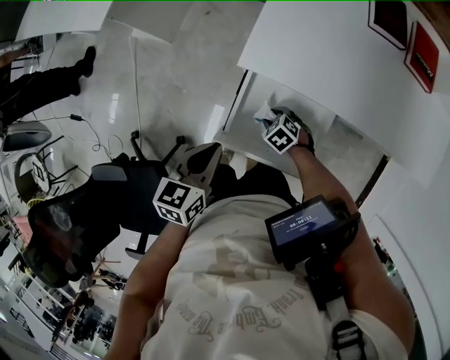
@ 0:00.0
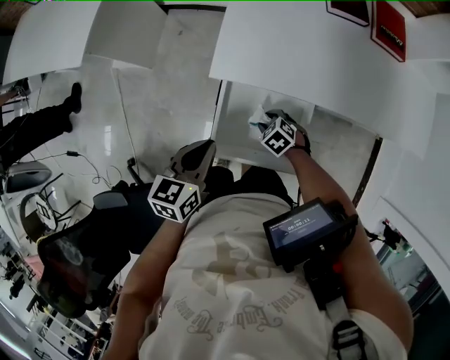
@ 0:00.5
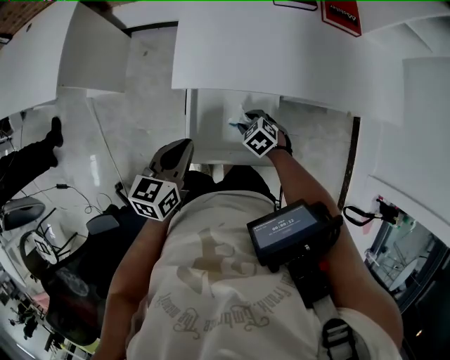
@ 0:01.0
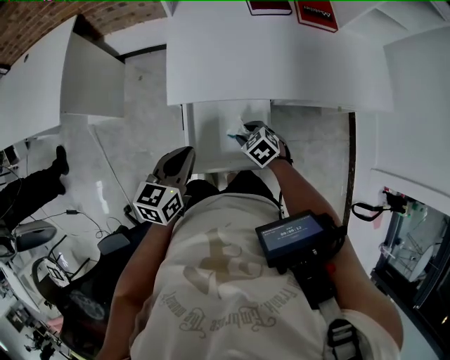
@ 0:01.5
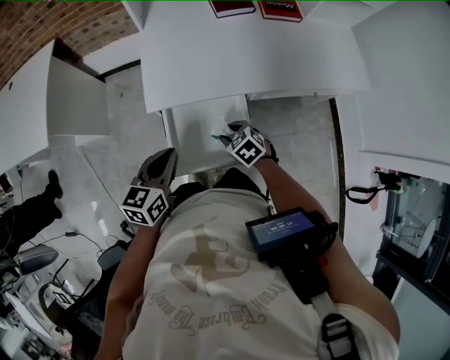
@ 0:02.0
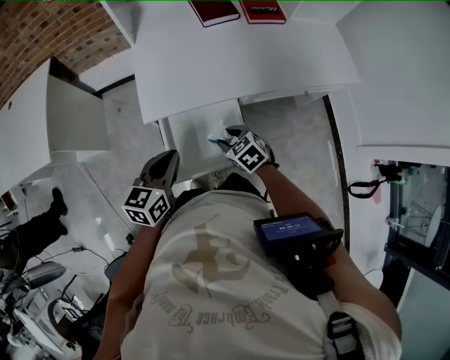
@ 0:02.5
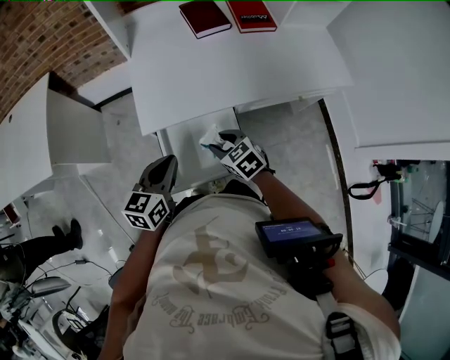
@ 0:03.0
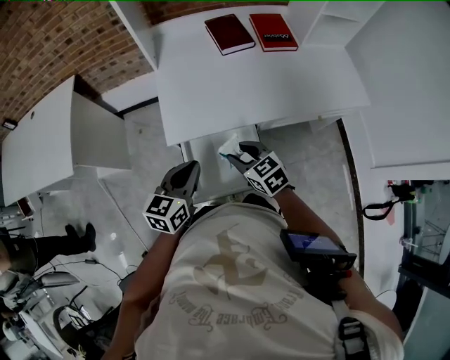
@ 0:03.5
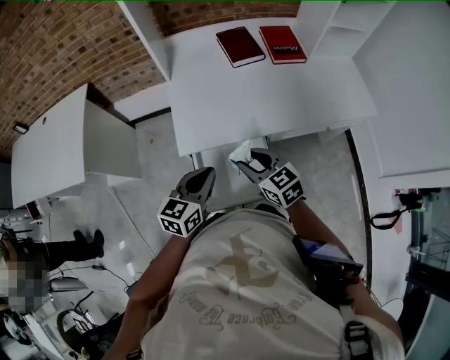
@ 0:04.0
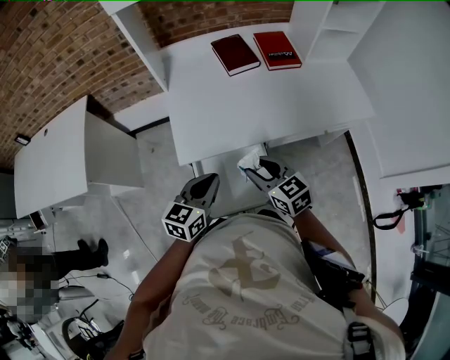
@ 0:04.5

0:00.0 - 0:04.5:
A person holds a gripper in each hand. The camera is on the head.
0:00.0 - 0:02.0: The left gripper moves approximately 10 cm, and changes its angle by some 20 degrees. Meanwhile the right gripper shifts some 10 cm upward, and swivels approximately 30 degrees.
0:02.0 - 0:04.5: The left gripper heads to the right and upward, covering approximately 10 cm. The right gripper travels upward by some 20 cm, and angles its fingers upward, by about 30 degrees.

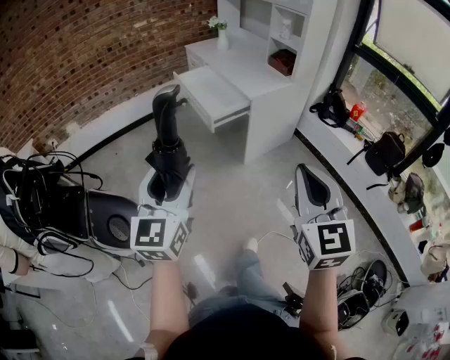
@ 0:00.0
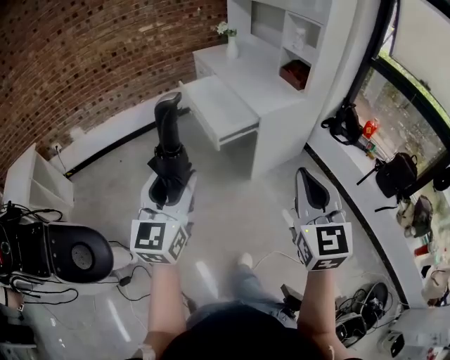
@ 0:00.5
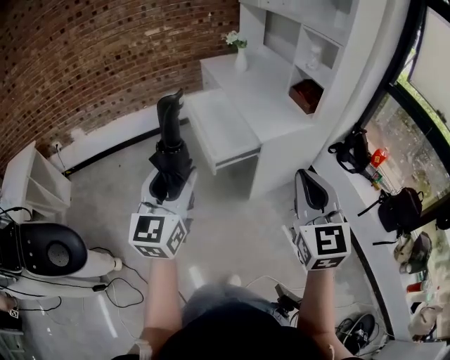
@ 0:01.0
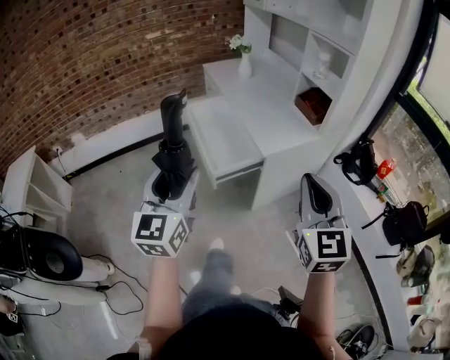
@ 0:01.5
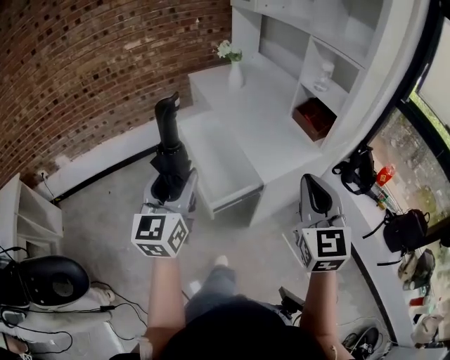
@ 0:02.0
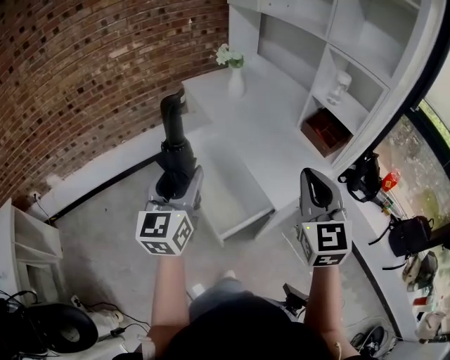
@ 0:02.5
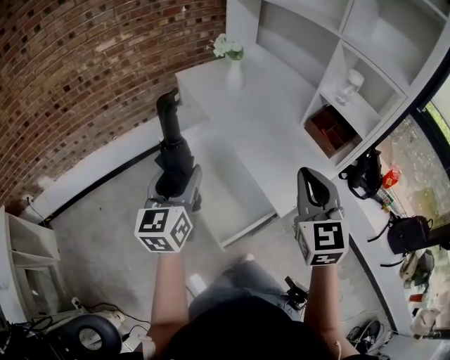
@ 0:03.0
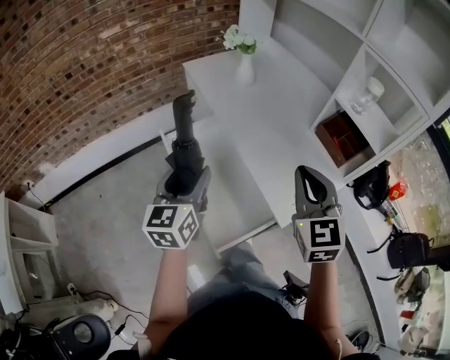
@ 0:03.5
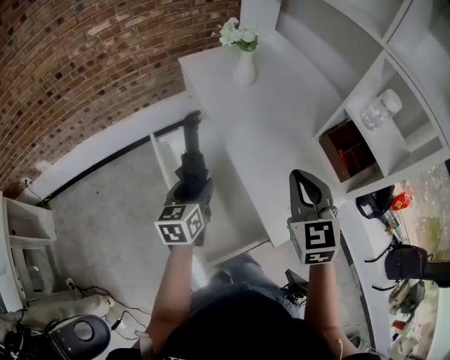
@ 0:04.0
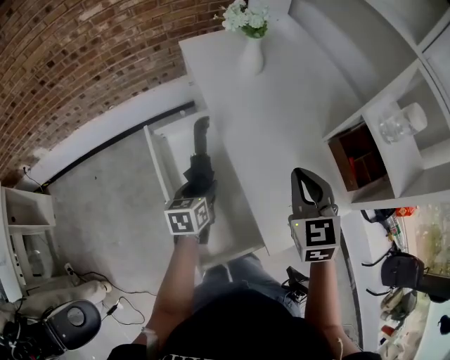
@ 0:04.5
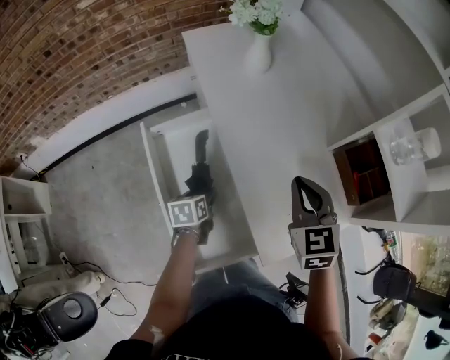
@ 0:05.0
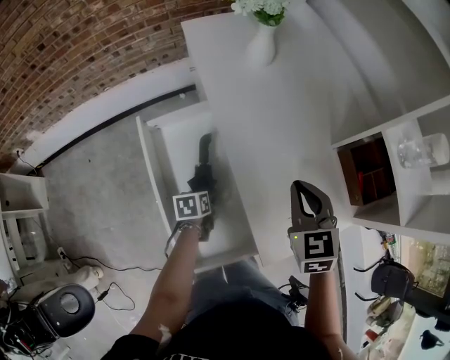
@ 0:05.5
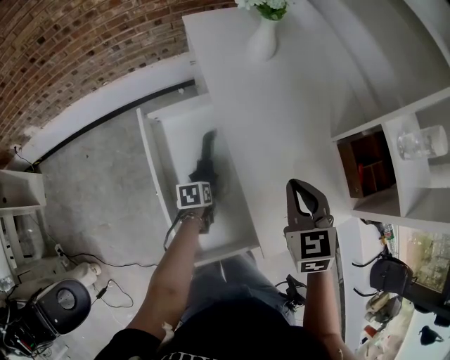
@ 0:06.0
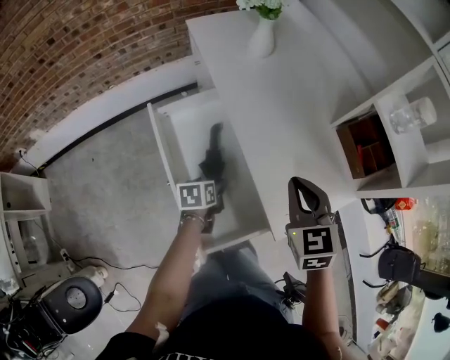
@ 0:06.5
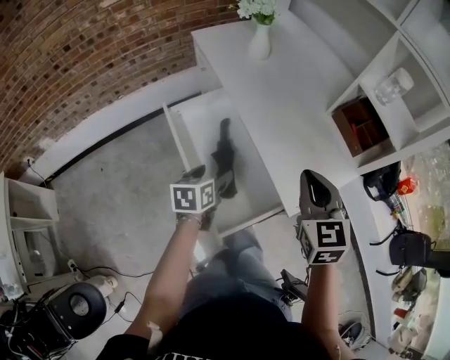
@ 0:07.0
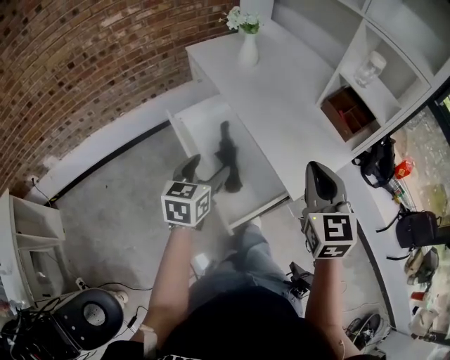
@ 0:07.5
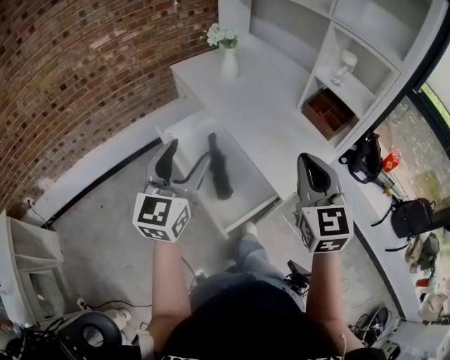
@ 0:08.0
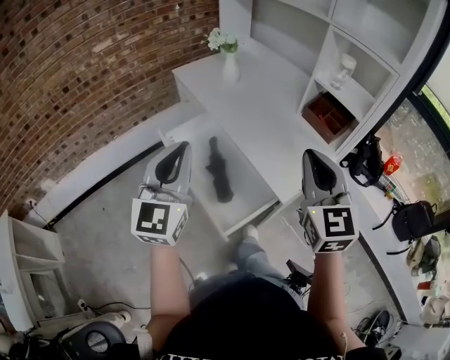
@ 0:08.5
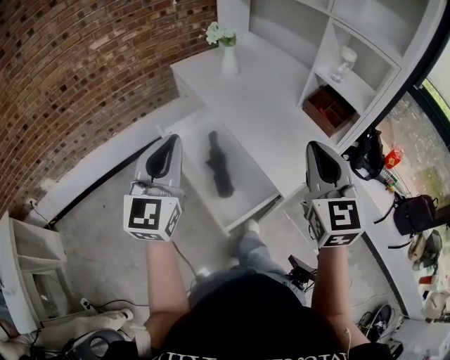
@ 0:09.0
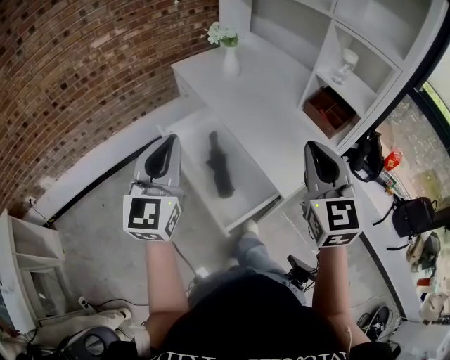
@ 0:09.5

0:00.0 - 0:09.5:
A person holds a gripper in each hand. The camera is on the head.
0:00.0 - 0:02.0: Both grippers are carried forward, some 50 cm.
0:02.0 - 0:04.0: The left gripper shifts about 40 cm forward and downward, and rotates roughly 30 degrees. The right gripper moves forward, about 35 cm.
0:04.0 - 0:05.5: The left gripper shifts approximately 25 cm downward, and angles its fingers downward, by approximately 30 degrees; the right gripper goes about 15 cm downward and forward.
0:05.5 - 0:07.5: The left gripper moves upward and backward, roughly 30 cm, and tilts its fingers approximately 30 degrees upward. Meanwhile the right gripper is displaced backward and upward by roughly 25 cm, and rotates approximately 20 degrees.
0:07.5 - 0:09.5: The right gripper goes about 10 cm upward; the left gripper is displaced upward by about 20 cm, swivels roughly 40 degrees, and closes.

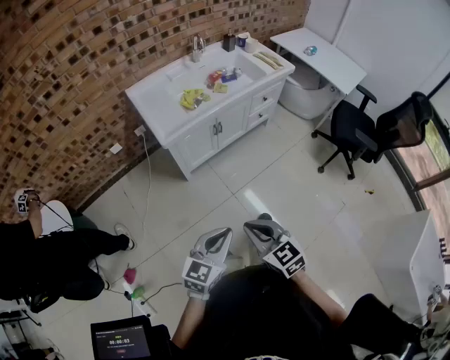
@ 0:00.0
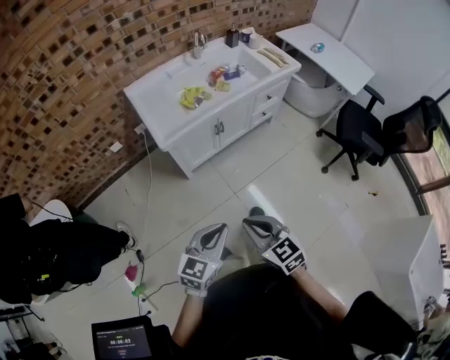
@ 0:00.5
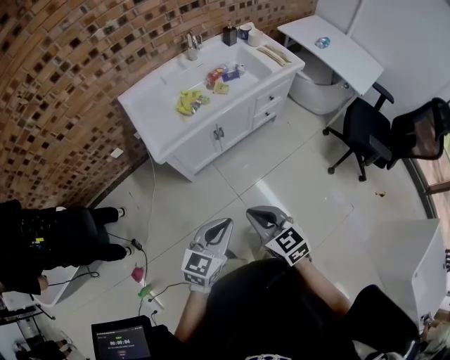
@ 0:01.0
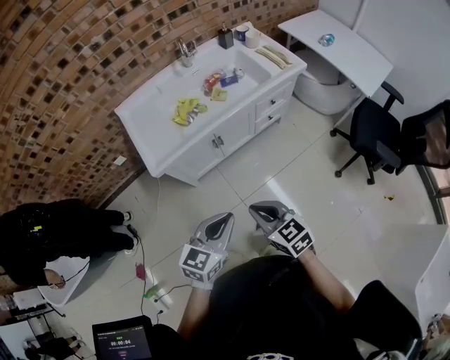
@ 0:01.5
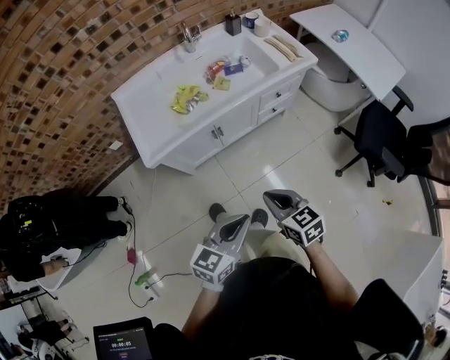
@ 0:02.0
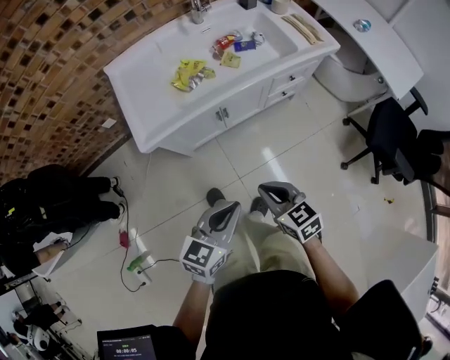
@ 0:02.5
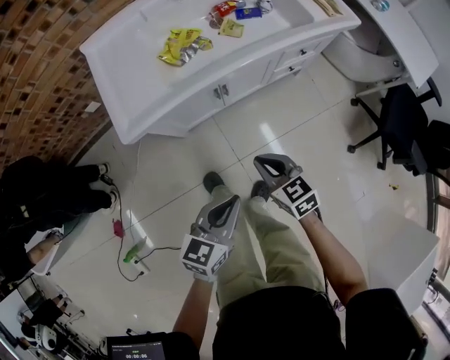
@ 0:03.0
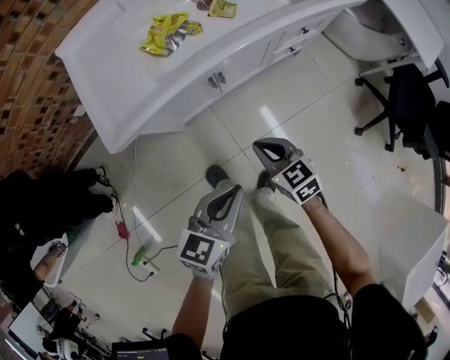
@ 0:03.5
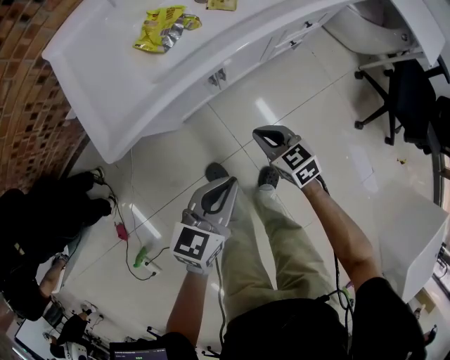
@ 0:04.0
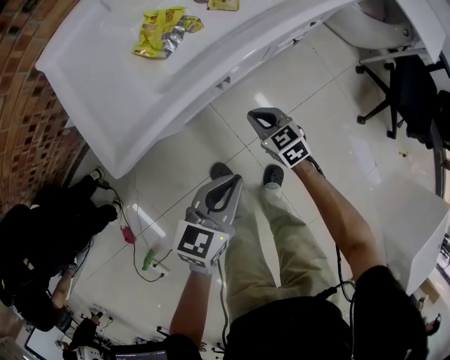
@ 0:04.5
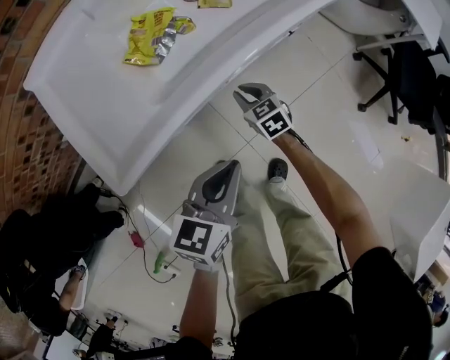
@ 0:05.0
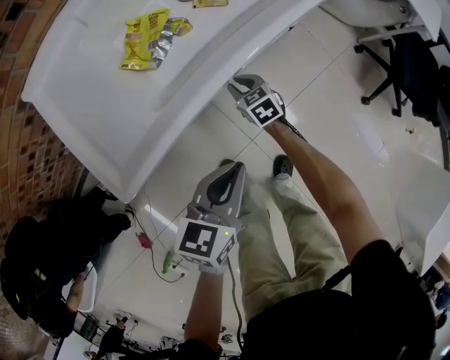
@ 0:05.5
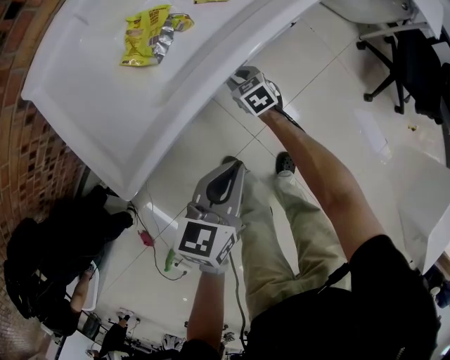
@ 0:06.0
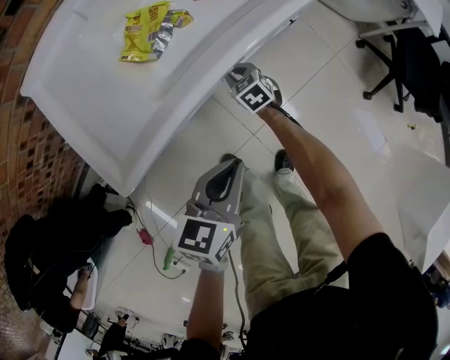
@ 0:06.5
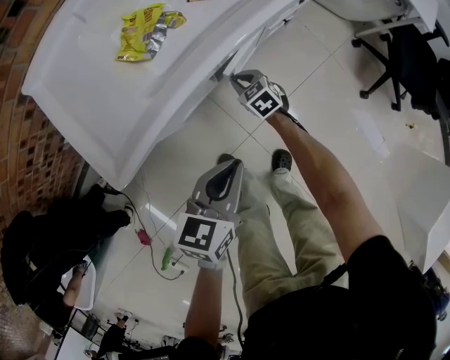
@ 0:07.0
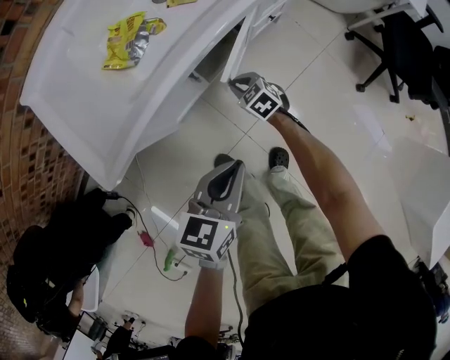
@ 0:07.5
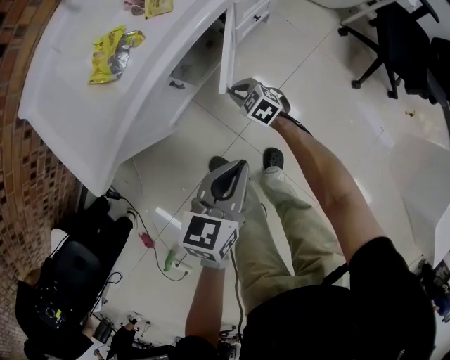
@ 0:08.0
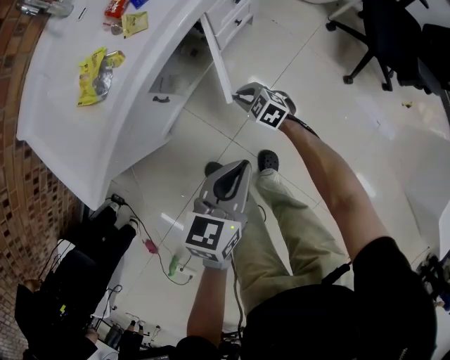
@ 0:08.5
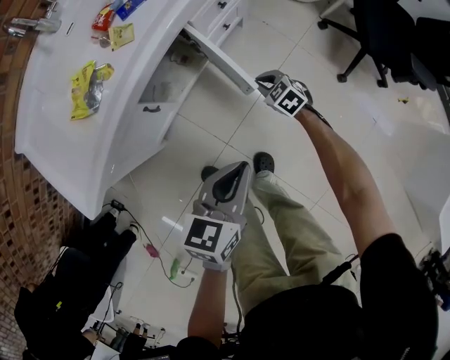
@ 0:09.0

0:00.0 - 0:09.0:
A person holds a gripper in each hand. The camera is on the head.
0:00.0 - 0:02.0: Both grippers move forward and to the right, approximately 30 cm.
0:02.0 - 0:04.5: The right gripper is displaced downward and forward by approximately 40 cm; the left gripper heads downward, forward and to the left, covering approximately 30 cm.
0:04.5 - 0:07.0: The right gripper shifts roughly 15 cm downward and forward.
0:07.0 - 0:09.0: Both grippers move to the right, approximately 25 cm.

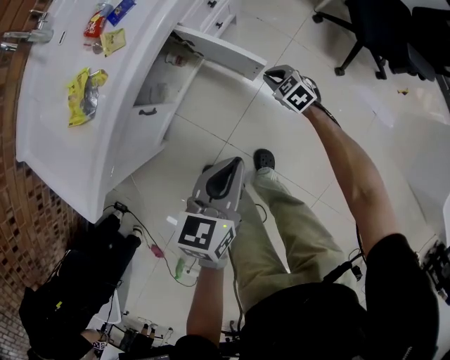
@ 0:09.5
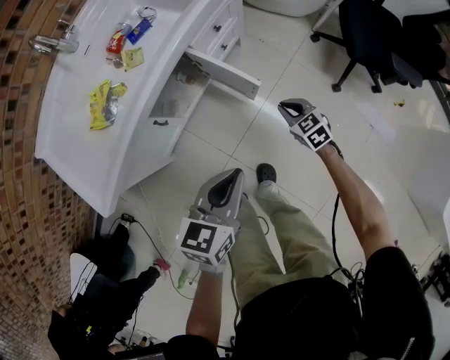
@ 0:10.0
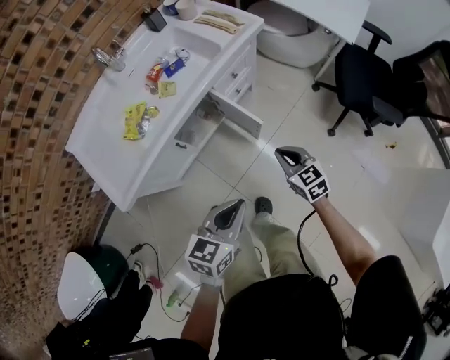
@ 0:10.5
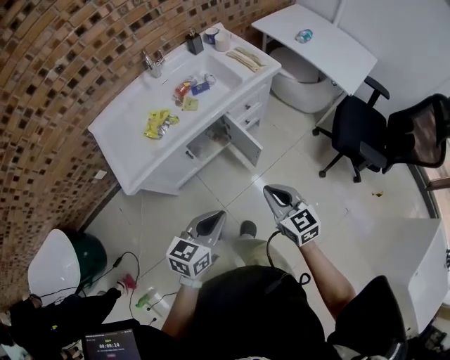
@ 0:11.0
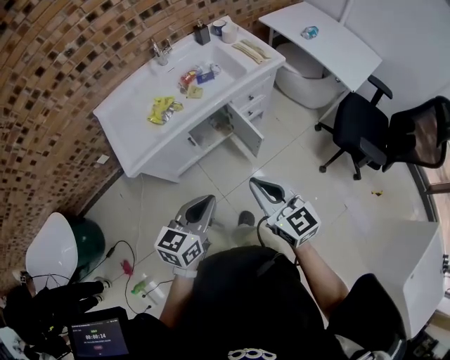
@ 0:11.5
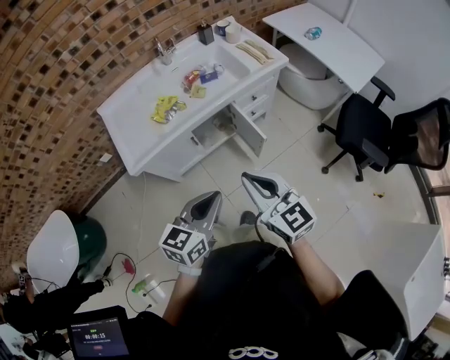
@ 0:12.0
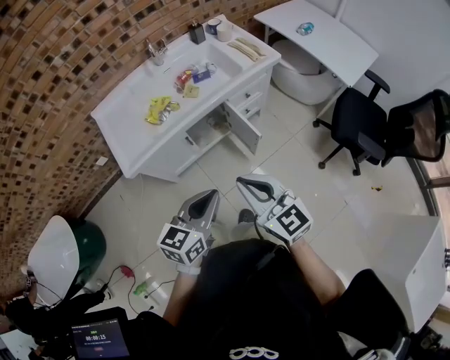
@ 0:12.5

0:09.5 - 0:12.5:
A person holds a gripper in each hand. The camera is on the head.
0:09.5 - 0:11.0: The right gripper is displaced upward and backward by some 50 cm, and tips its fingers upward by some 30 degrees. The left gripper heads upward and backward, covering roughly 25 cm.
0:11.0 - 0:12.5: The right gripper is displaced upward and to the left by about 15 cm. The left gripper is displaced upward by roughly 5 cm.
